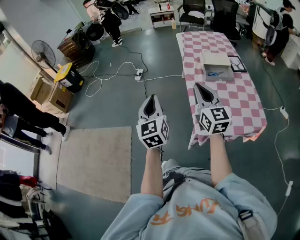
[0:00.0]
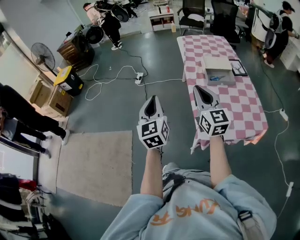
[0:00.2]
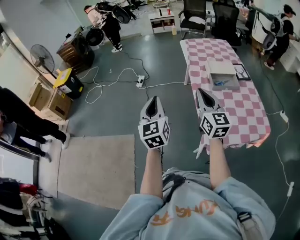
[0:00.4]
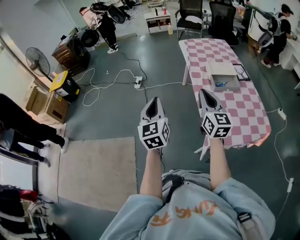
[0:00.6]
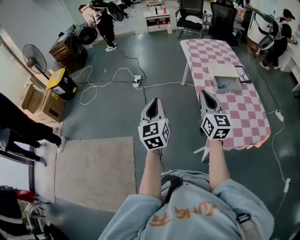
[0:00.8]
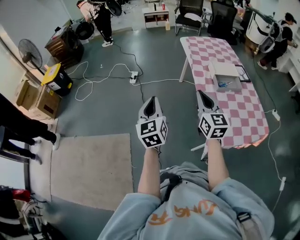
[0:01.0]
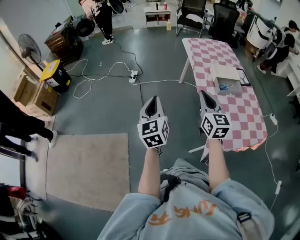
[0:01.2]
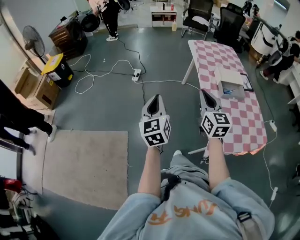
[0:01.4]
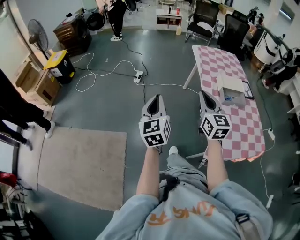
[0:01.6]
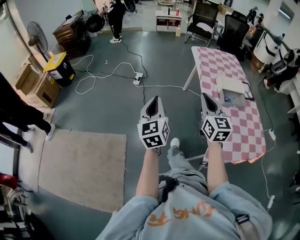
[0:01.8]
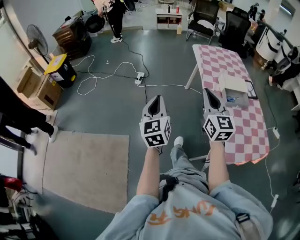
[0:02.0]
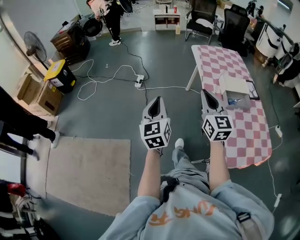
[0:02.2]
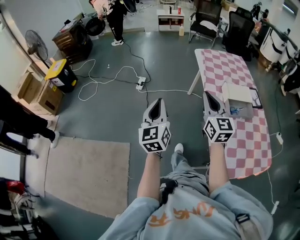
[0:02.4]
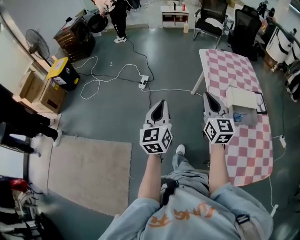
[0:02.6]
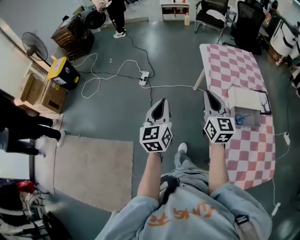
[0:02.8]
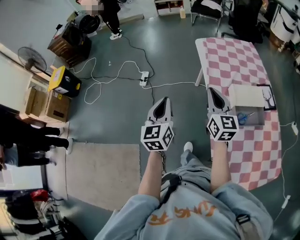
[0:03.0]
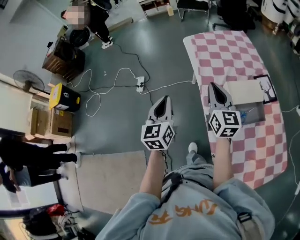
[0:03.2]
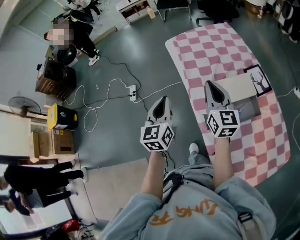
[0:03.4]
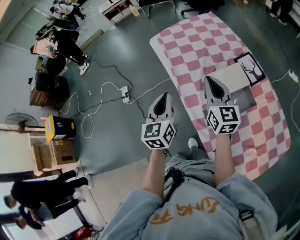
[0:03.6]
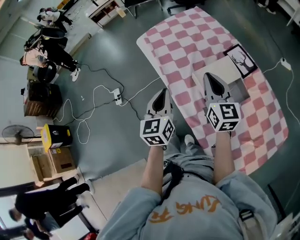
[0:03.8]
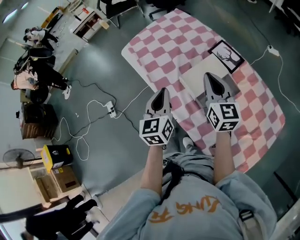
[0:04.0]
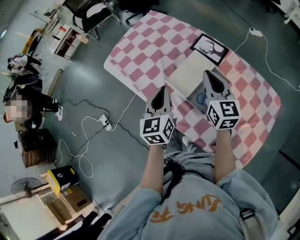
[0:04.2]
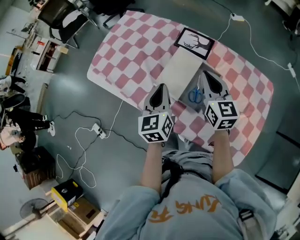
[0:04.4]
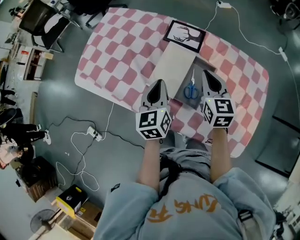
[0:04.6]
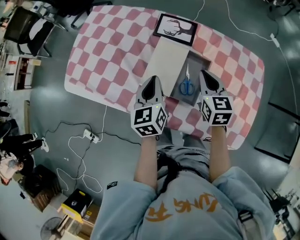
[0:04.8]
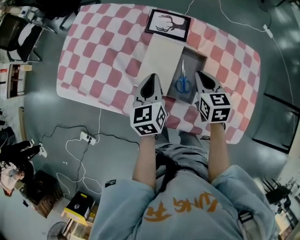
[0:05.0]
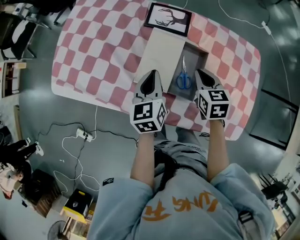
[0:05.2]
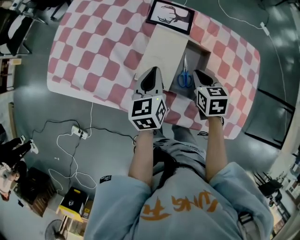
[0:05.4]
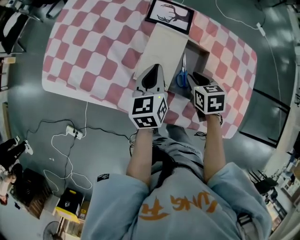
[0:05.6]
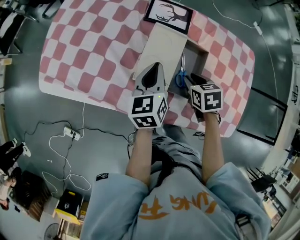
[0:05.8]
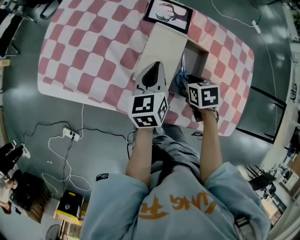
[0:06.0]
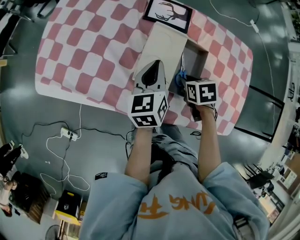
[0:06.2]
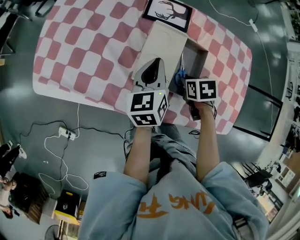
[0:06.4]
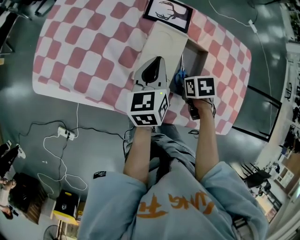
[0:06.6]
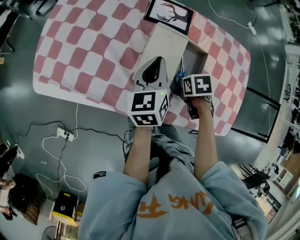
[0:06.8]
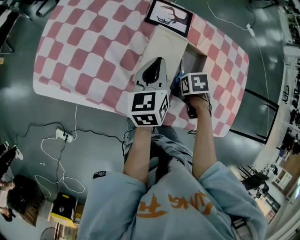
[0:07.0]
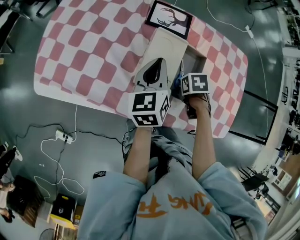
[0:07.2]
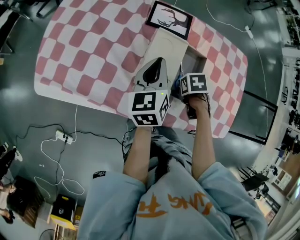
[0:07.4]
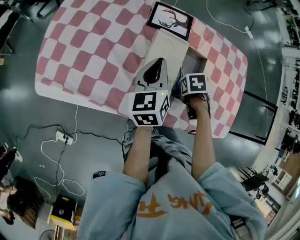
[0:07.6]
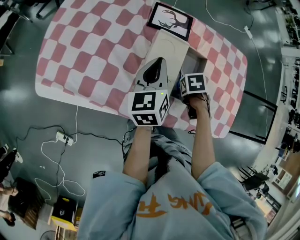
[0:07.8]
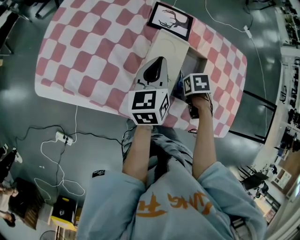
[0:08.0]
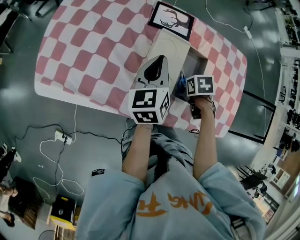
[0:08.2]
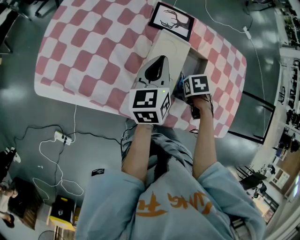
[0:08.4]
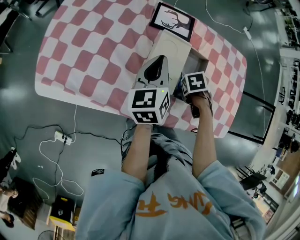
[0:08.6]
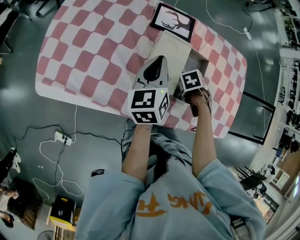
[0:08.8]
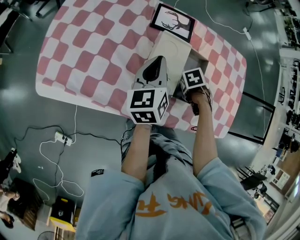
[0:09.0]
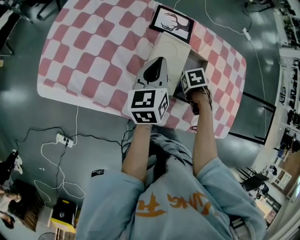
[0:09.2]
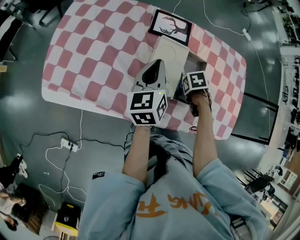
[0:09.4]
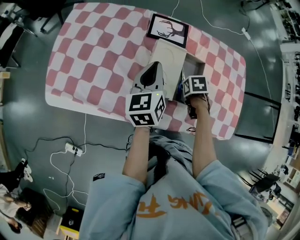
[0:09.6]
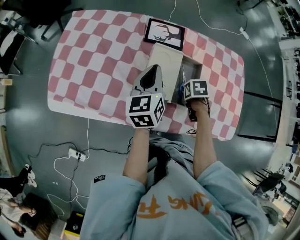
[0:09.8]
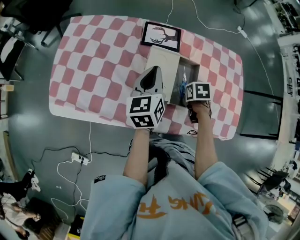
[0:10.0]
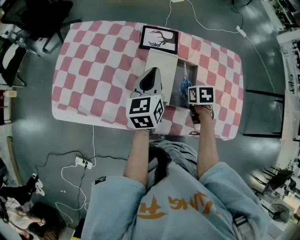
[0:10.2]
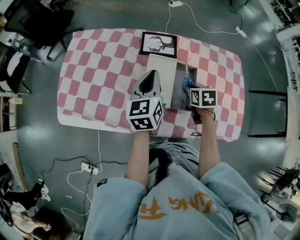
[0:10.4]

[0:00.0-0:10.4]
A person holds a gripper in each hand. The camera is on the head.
0:00.0 to 0:01.4: Both grippers move to the left and forward, roughly 20 cm.
0:01.4 to 0:03.0: Both grippers move forward and to the right, some 35 cm.
0:03.0 to 0:04.4: The right gripper ends up some 35 cm from where it was, and changes its angle by approximately 50 degrees. The left gripper moves roughly 40 cm, and rotates about 50 degrees.
0:04.4 to 0:06.0: The right gripper goes some 20 cm downward, tips its fingers downward by roughly 50 degrees, and opens up. The left gripper shifts roughly 10 cm downward and forward, and rotates about 20 degrees.
0:06.0 to 0:07.4: The right gripper changes its angle by roughly 20 degrees.
0:07.4 to 0:09.0: There are only small adjustments of the grippers.
0:09.0 to 0:10.4: The right gripper goes about 10 cm upward, and turns by approximately 50 degrees, while the left gripper shifts approximately 5 cm upward.

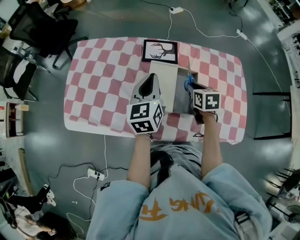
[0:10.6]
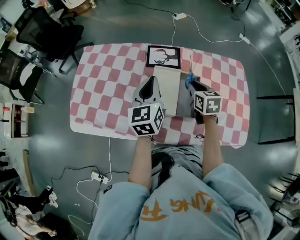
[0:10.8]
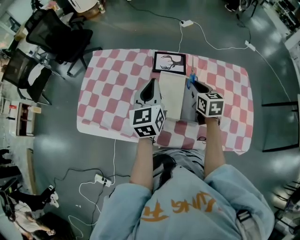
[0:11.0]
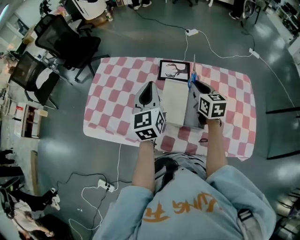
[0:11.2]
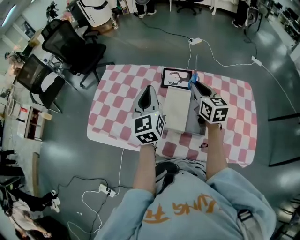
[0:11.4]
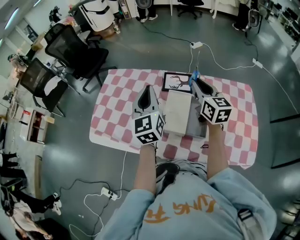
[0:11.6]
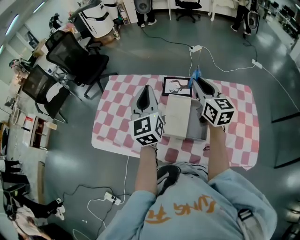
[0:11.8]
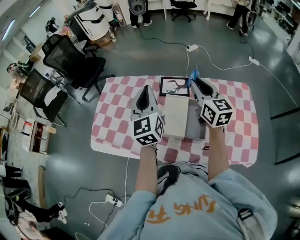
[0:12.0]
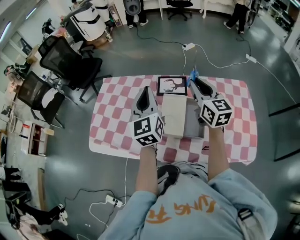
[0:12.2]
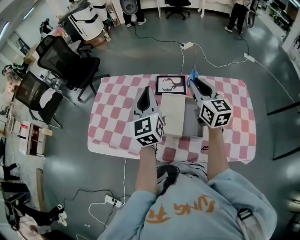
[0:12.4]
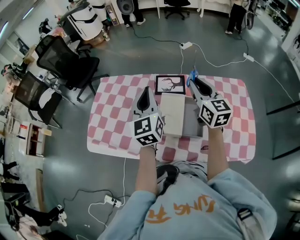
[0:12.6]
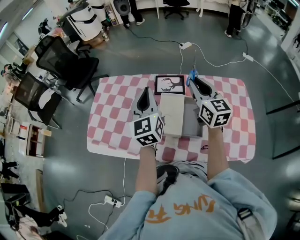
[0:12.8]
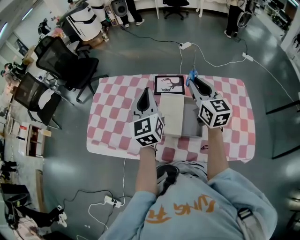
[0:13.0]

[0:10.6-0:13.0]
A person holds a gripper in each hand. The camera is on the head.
0:10.6 to 0:11.8: The right gripper moves upward, about 25 cm, and tilts its fingers some 40 degrees upward; the left gripper travels upward and to the left by roughly 15 cm, and rotates roughly 30 degrees.
0:11.8 to 0:13.0: There are only small adjustments of the grippers.

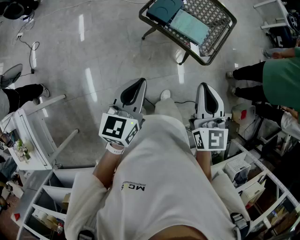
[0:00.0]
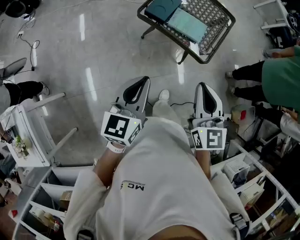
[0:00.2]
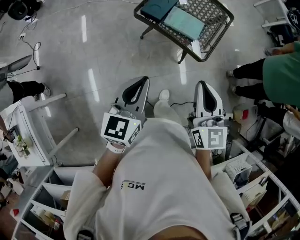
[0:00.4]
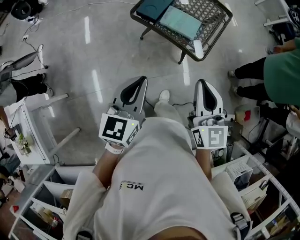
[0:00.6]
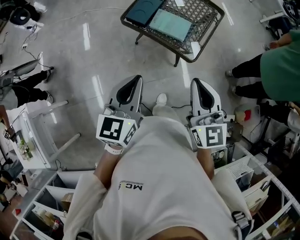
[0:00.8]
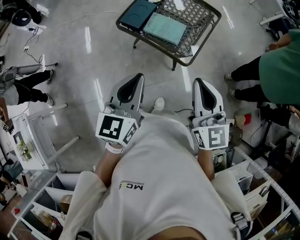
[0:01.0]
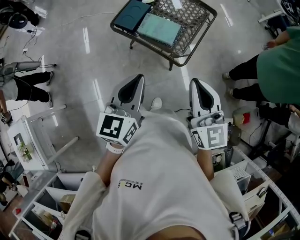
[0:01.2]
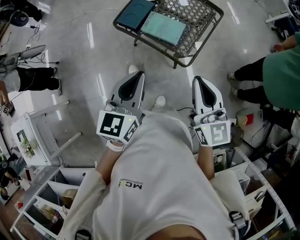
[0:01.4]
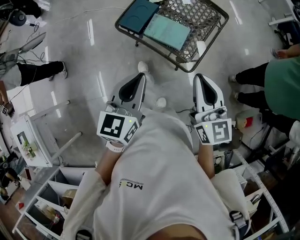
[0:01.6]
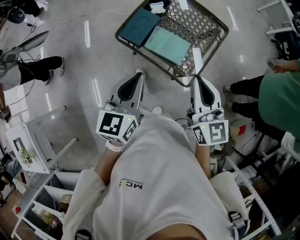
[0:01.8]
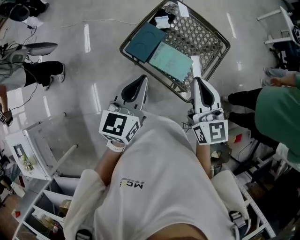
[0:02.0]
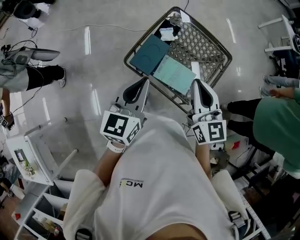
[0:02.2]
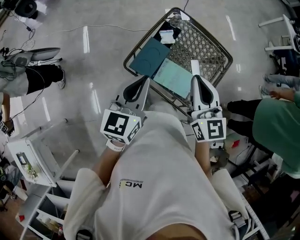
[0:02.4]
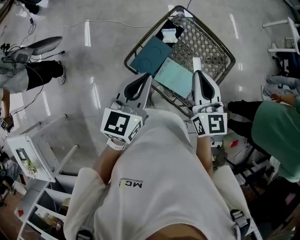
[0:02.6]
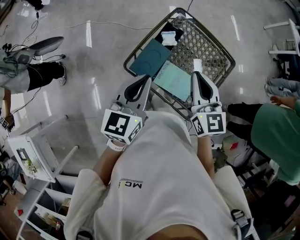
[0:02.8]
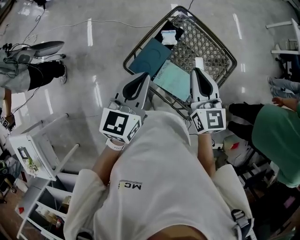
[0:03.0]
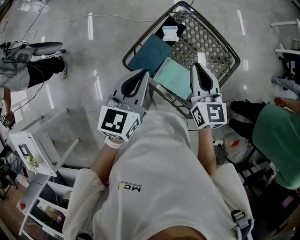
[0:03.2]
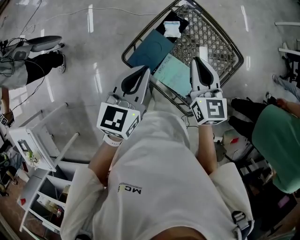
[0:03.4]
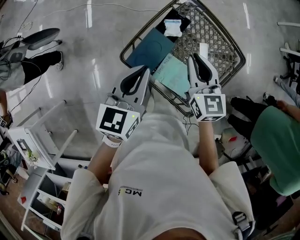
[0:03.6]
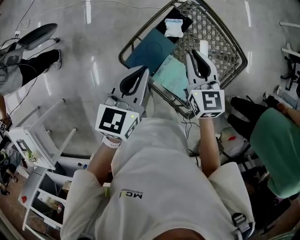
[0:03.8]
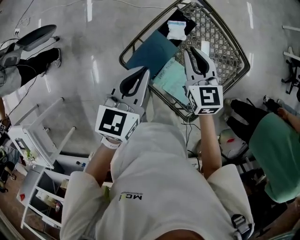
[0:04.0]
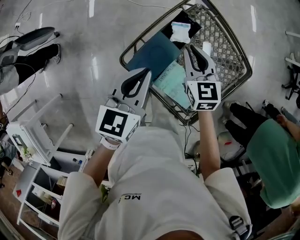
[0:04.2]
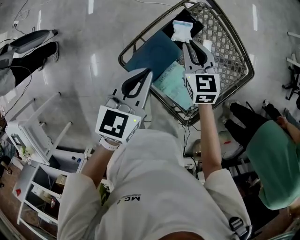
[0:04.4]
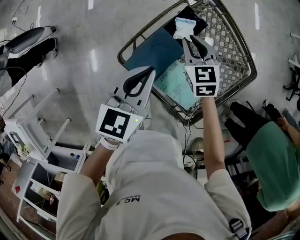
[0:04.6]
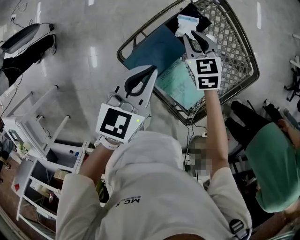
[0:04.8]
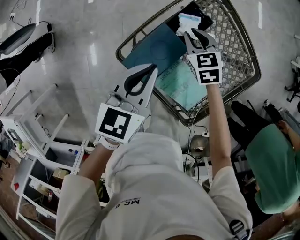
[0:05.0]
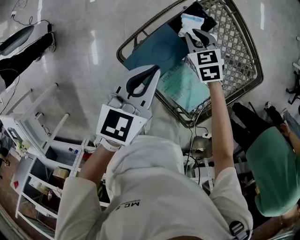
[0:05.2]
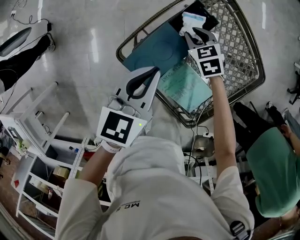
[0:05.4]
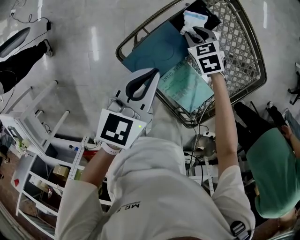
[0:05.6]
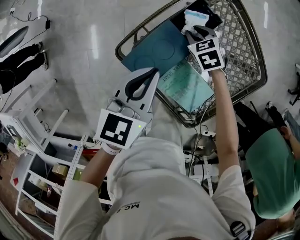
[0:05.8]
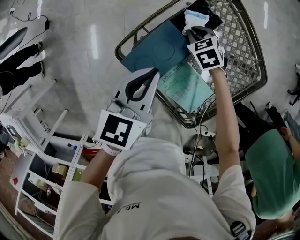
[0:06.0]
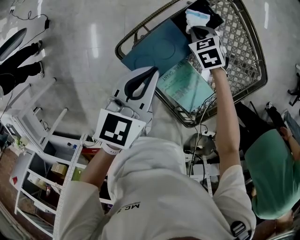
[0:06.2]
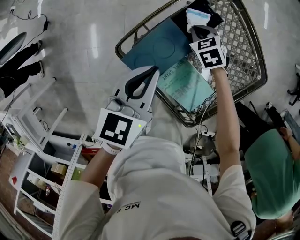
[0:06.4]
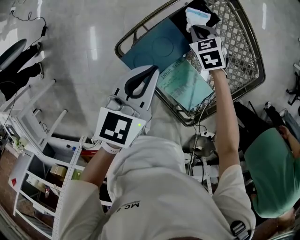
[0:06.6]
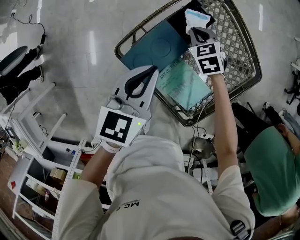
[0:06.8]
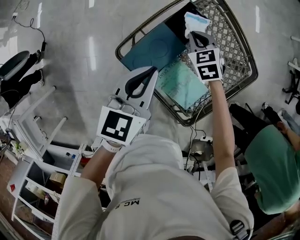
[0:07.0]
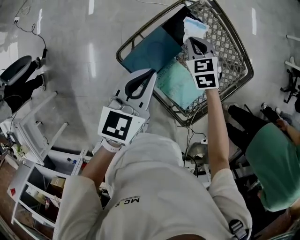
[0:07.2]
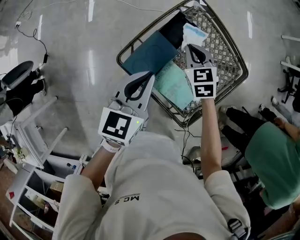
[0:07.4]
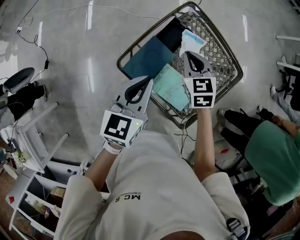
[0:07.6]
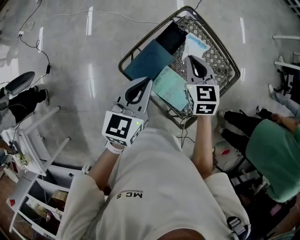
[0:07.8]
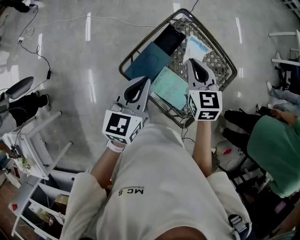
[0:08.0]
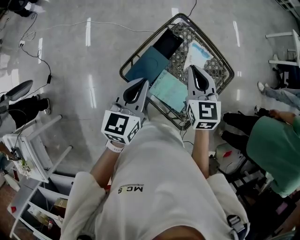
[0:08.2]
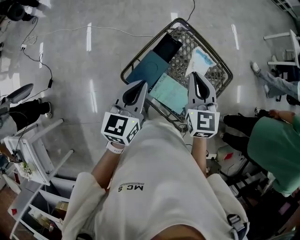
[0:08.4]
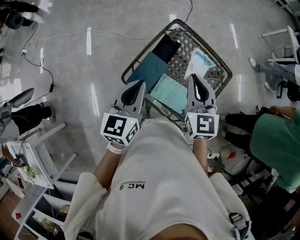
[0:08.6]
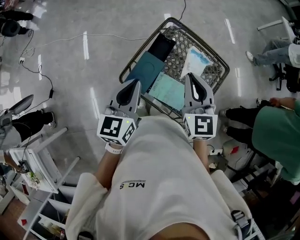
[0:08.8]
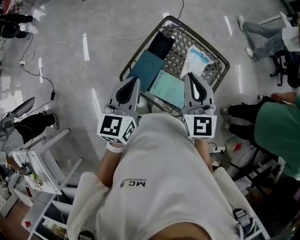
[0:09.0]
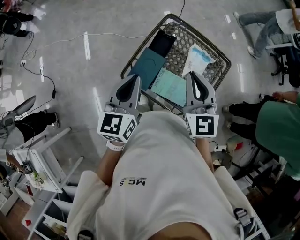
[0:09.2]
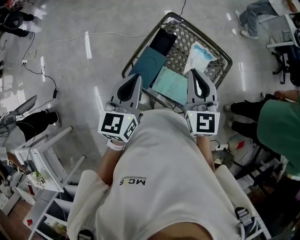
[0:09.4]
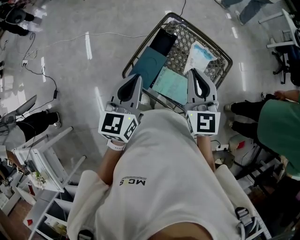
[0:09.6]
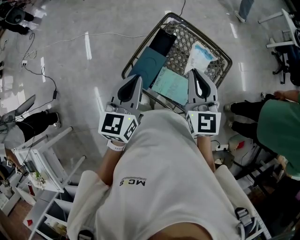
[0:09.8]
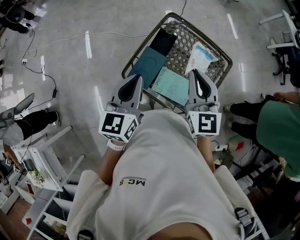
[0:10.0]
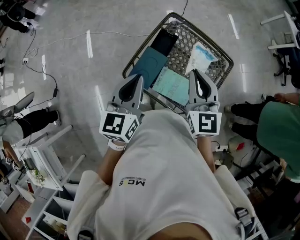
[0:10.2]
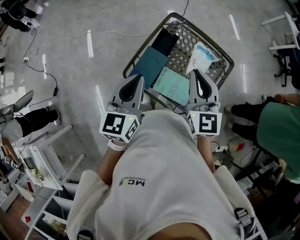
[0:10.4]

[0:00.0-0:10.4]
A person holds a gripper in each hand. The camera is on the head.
0:00.0 to 0:01.4: The grippers both shift to the right by some 20 cm.
0:01.4 to 0:03.0: The grippers both shift forward by some 35 cm.
0:03.0 to 0:04.4: The right gripper is displaced downward and forward by some 25 cm, and rotates approximately 20 degrees, while the left gripper goes roughly 15 cm downward and forward.
0:04.4 to 0:06.0: The right gripper moves downward, some 20 cm, and changes its angle by some 40 degrees; the left gripper goes some 5 cm downward.
0:06.0 to 0:07.4: The left gripper shifts about 10 cm upward; the right gripper is displaced upward by roughly 20 cm, and turns by approximately 20 degrees.
0:07.4 to 0:09.0: The right gripper goes some 30 cm upward and backward, and points its fingers roughly 30 degrees further upward, while the left gripper travels upward by roughly 10 cm.
0:09.0 to 0:10.4: The grippers make only small movements.
